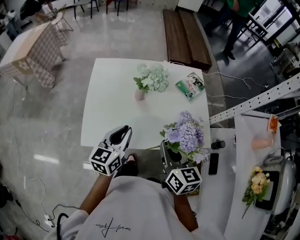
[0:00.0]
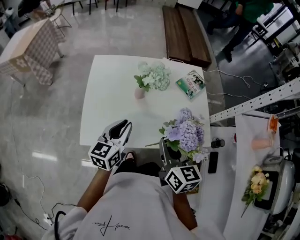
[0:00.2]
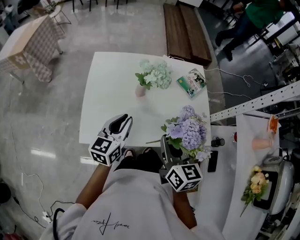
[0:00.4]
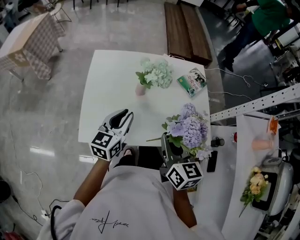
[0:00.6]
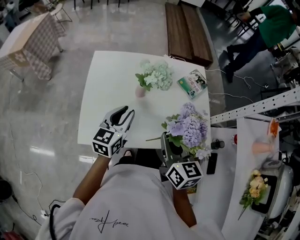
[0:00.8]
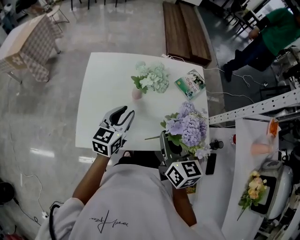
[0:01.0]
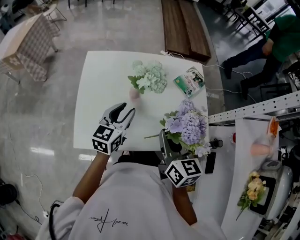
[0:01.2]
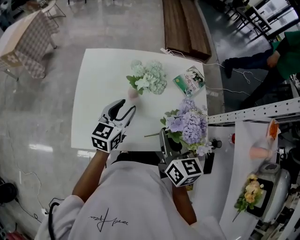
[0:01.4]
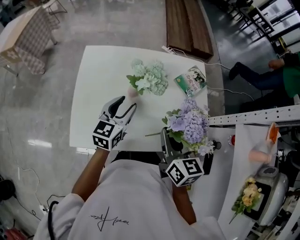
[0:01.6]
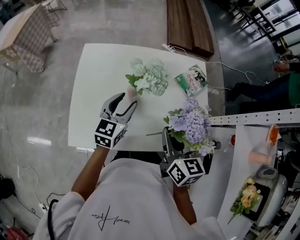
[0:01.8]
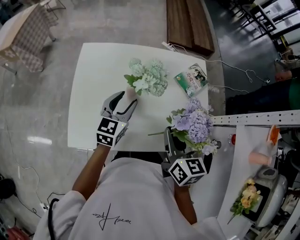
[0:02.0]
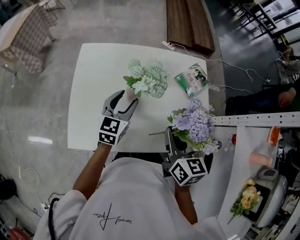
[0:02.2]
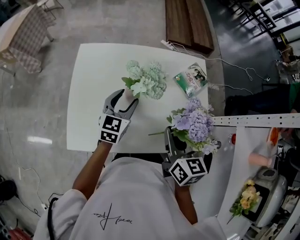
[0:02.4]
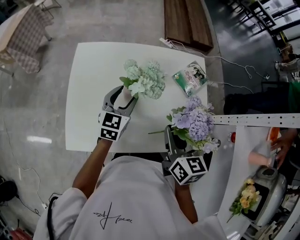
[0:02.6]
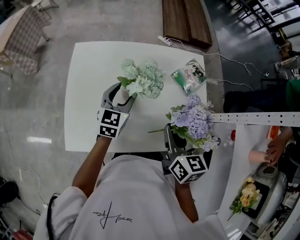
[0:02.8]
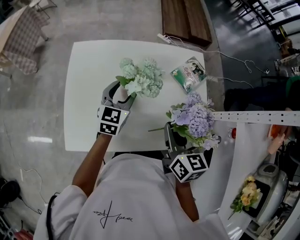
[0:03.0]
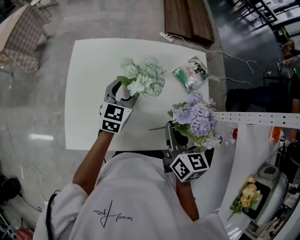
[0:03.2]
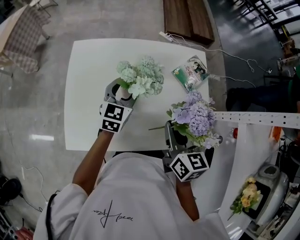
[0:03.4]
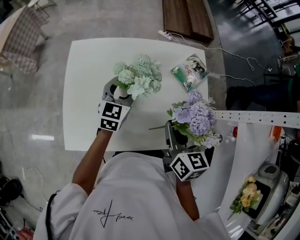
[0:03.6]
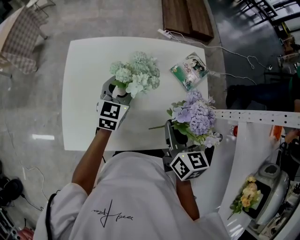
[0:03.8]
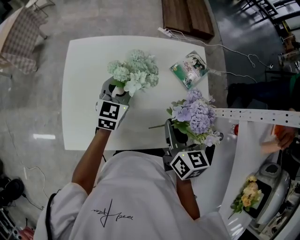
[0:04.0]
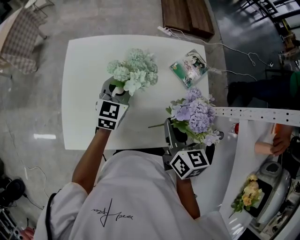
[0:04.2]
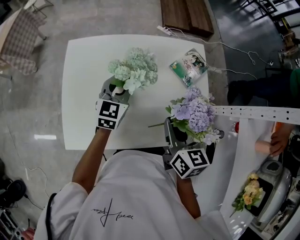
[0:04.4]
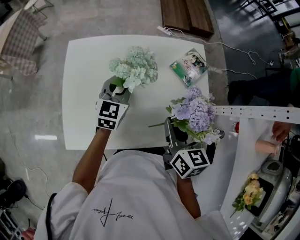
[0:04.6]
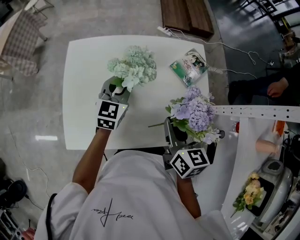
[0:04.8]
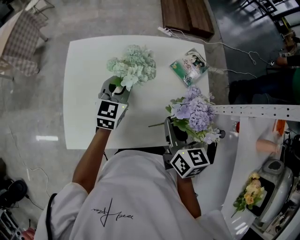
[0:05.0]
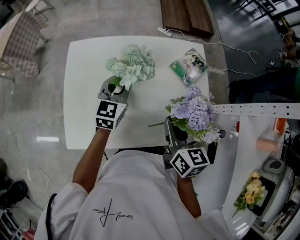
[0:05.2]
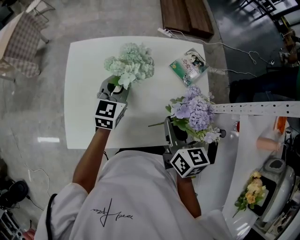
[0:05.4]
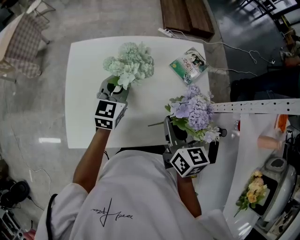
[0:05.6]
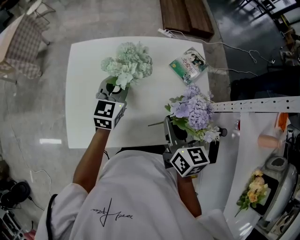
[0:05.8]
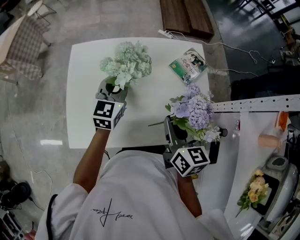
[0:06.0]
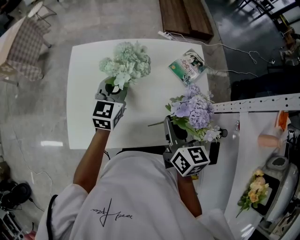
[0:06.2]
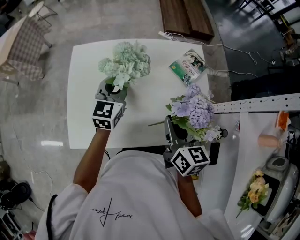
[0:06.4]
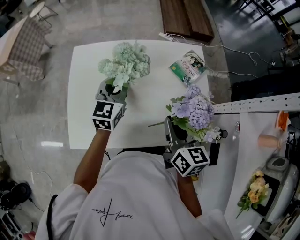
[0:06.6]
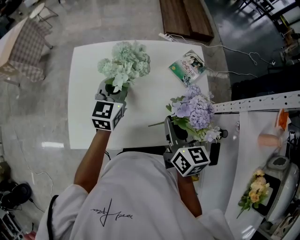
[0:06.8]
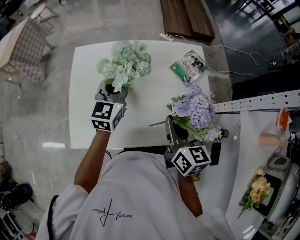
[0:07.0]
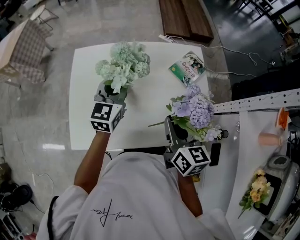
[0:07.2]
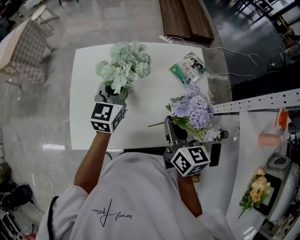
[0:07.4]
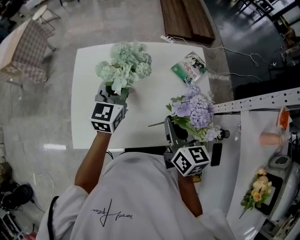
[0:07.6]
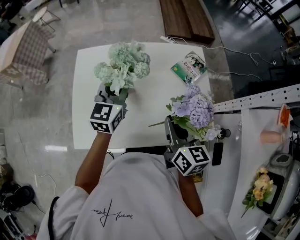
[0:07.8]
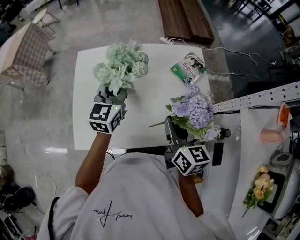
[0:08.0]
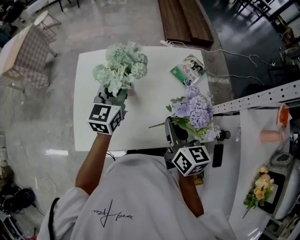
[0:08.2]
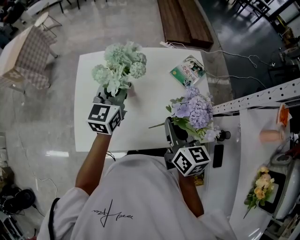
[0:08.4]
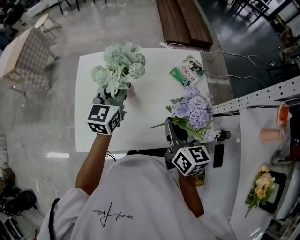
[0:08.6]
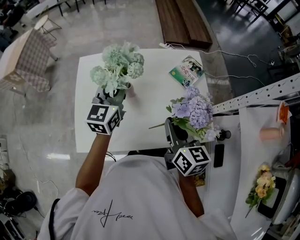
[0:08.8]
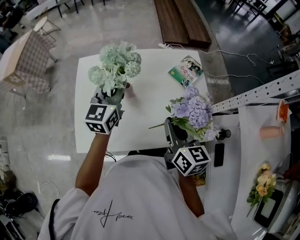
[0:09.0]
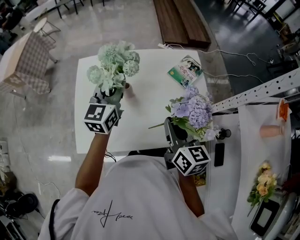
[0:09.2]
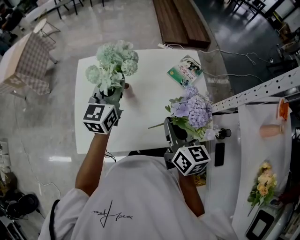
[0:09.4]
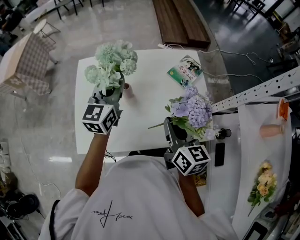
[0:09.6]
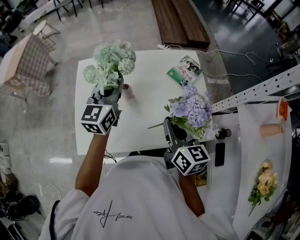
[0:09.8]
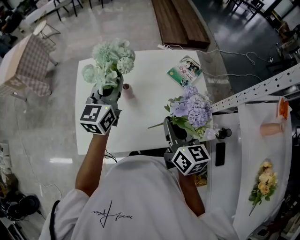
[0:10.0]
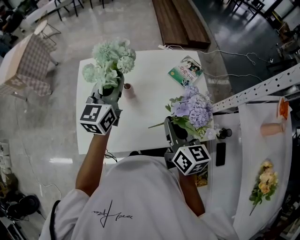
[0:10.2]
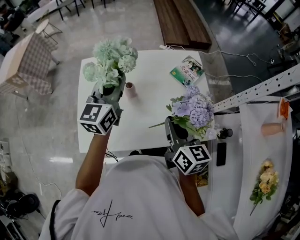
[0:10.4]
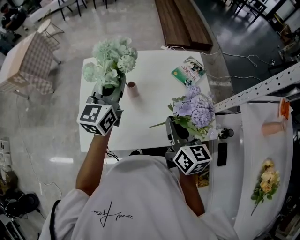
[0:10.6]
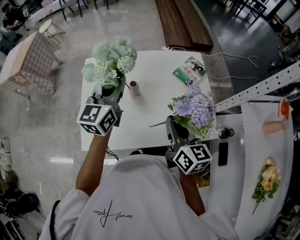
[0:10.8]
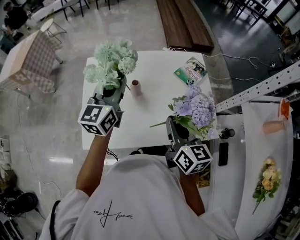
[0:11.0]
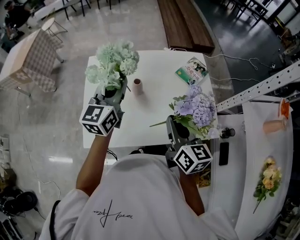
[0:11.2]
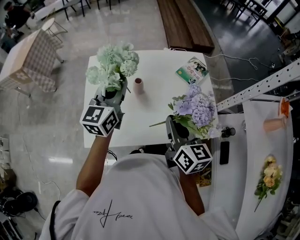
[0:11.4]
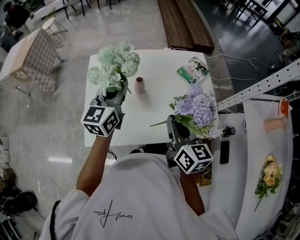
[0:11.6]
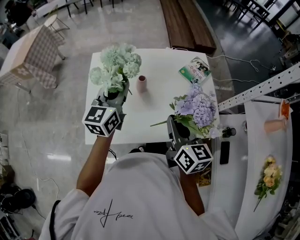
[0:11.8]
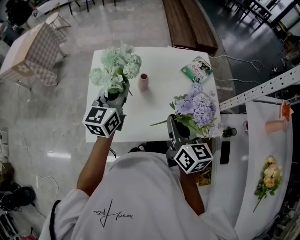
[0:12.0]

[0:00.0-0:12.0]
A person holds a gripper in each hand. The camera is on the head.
0:00.0 to 0:01.6: The grippers both shift forward by about 10 cm. The left gripper opens.
0:01.6 to 0:03.0: The left gripper moves forward, roughly 10 cm.
0:03.0 to 0:04.4: The left gripper closes its fingers.
0:04.4 to 0:06.0: The grippers make only small movements.
0:06.0 to 0:07.6: The grippers move only a little.
0:07.6 to 0:09.0: The grippers stay close to where they were, moving slightly.
0:09.0 to 0:10.4: There are only small adjustments of the grippers.
0:10.4 to 0:12.0: The right gripper heads to the left, covering some 5 cm; the left gripper goes some 10 cm backward and to the left.

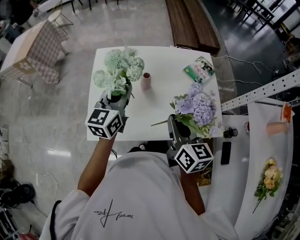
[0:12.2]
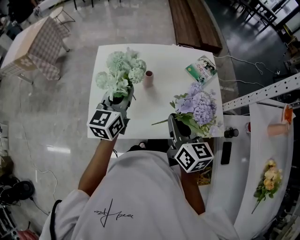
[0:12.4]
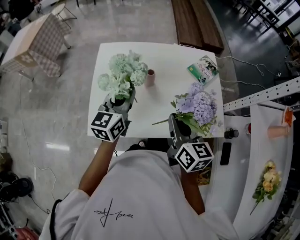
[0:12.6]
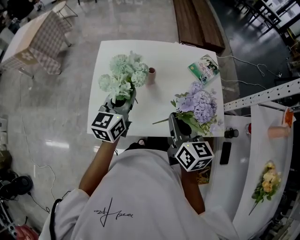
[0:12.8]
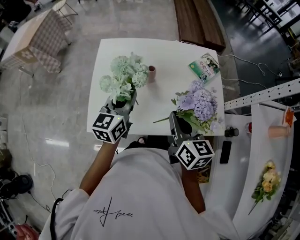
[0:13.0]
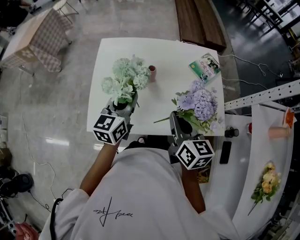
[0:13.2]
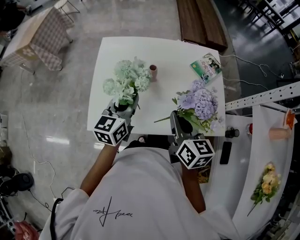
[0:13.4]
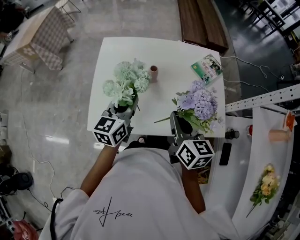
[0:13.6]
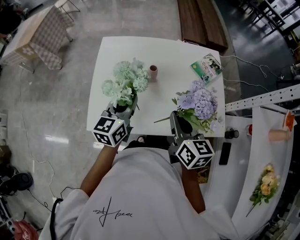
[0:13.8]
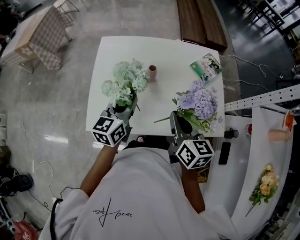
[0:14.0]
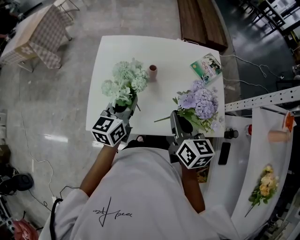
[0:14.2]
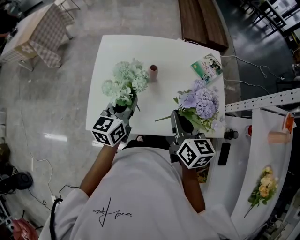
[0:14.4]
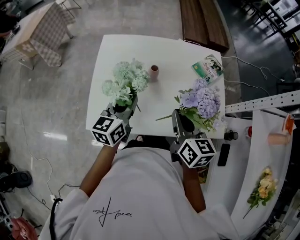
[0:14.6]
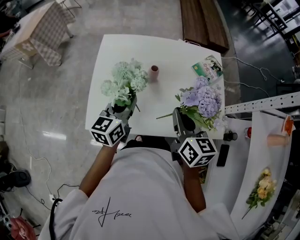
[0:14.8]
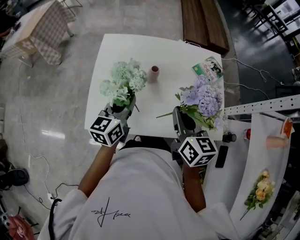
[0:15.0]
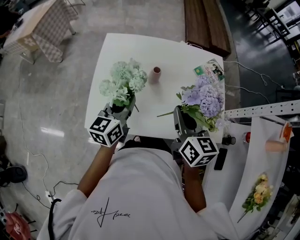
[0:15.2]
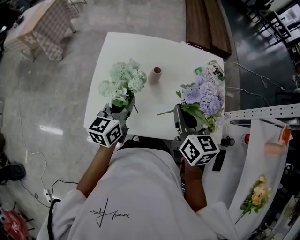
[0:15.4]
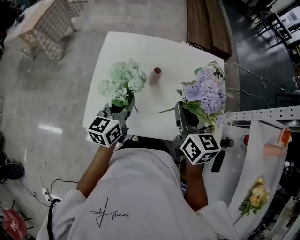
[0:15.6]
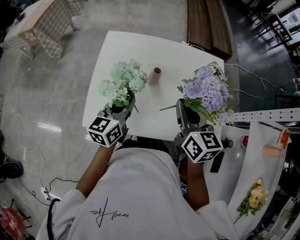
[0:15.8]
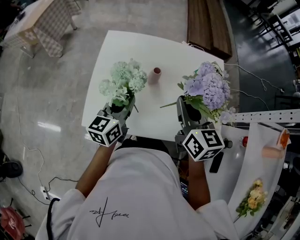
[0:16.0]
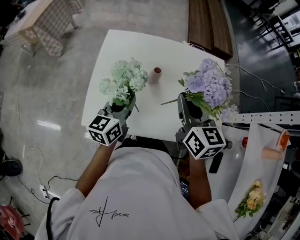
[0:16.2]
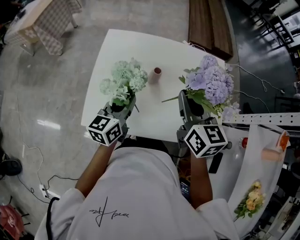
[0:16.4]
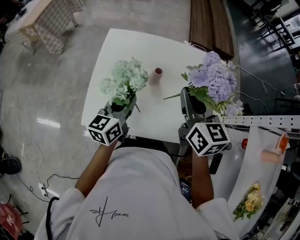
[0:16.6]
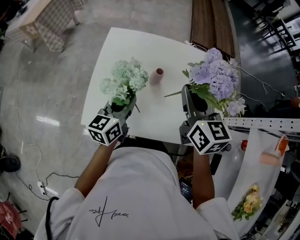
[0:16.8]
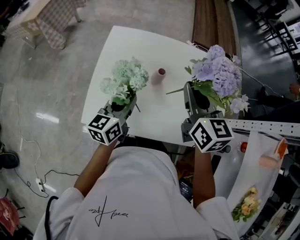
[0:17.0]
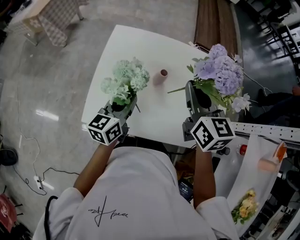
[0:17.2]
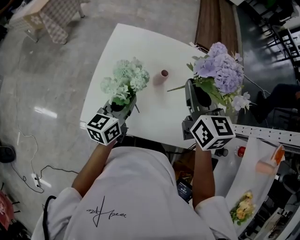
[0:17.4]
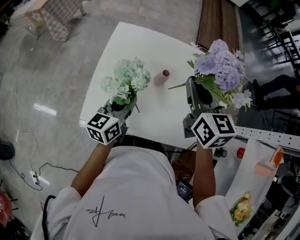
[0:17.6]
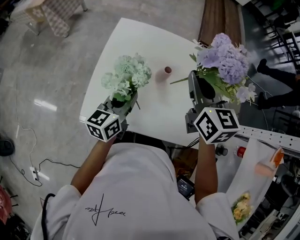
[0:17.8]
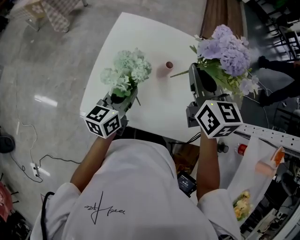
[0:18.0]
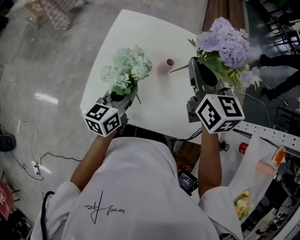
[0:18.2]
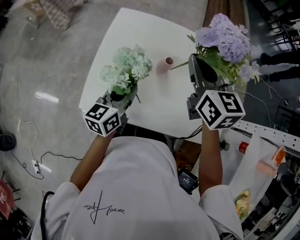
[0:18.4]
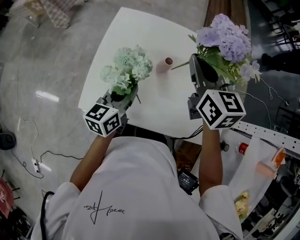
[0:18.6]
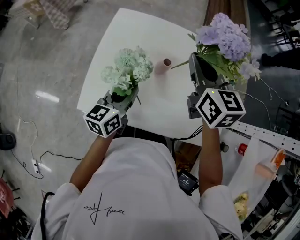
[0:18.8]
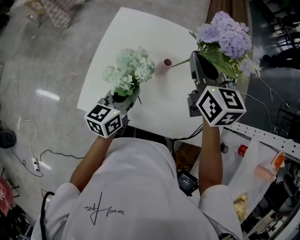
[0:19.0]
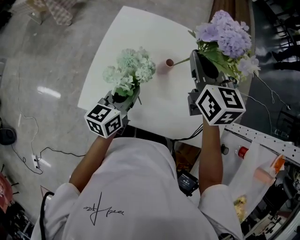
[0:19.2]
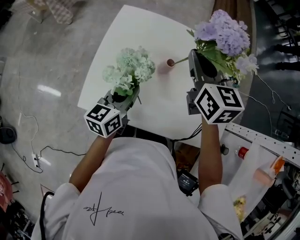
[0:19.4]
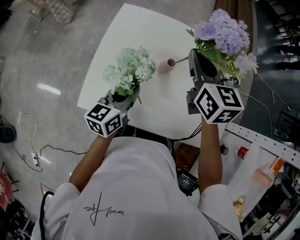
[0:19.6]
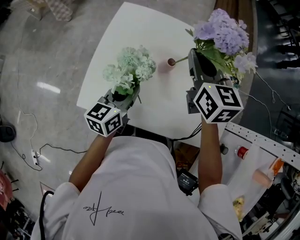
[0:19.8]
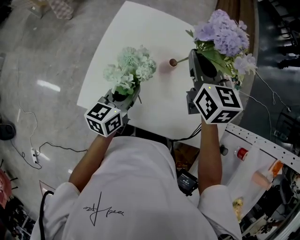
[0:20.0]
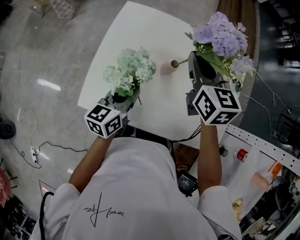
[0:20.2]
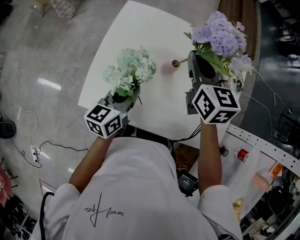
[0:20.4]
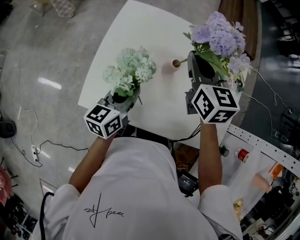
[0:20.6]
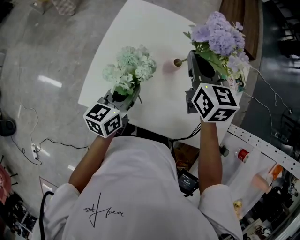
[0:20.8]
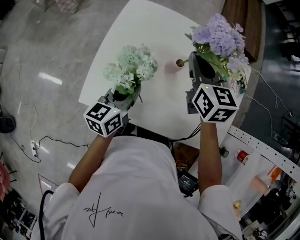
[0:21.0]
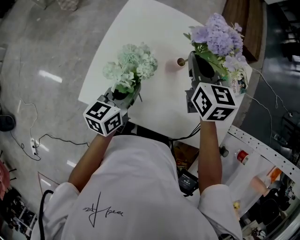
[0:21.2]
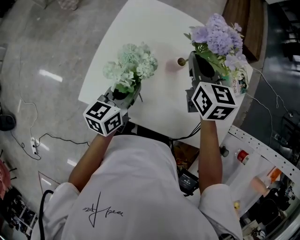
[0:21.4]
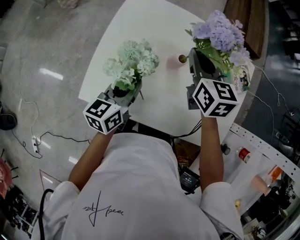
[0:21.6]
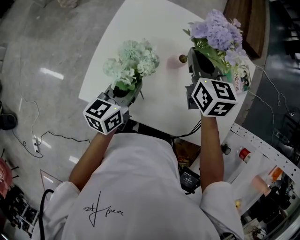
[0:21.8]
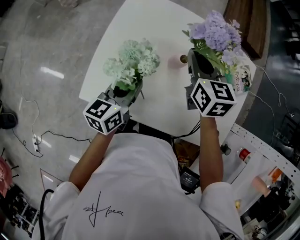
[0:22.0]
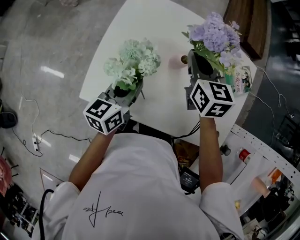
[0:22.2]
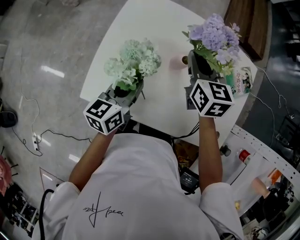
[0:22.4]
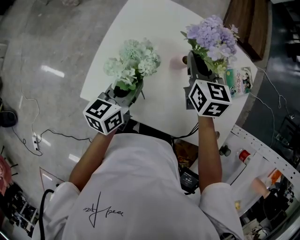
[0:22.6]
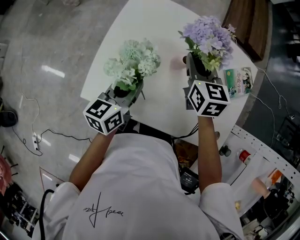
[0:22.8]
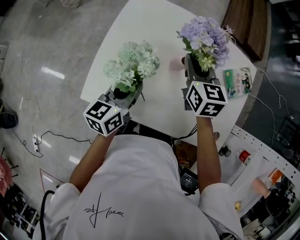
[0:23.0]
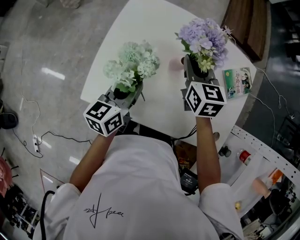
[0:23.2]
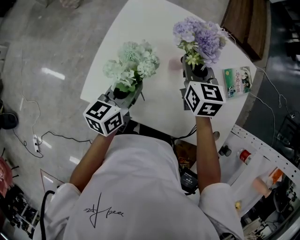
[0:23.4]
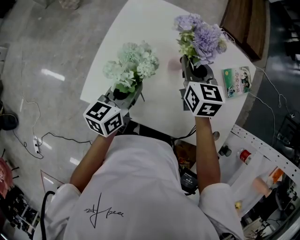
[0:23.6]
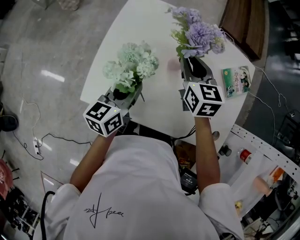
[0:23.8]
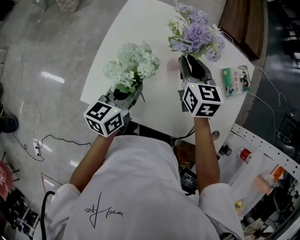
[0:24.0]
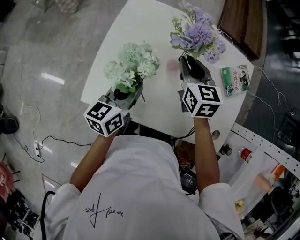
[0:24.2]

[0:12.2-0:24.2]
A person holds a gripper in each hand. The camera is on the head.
0:12.2 to 0:13.8: The left gripper heads downward, covering some 5 cm.
0:13.8 to 0:15.2: The grippers stay close to where they were, moving slightly.
0:15.2 to 0:16.6: The right gripper goes approximately 10 cm forward and upward.
0:16.6 to 0:18.2: The right gripper shifts roughly 10 cm forward.
0:18.2 to 0:19.8: There are only small adjustments of the grippers.
0:19.8 to 0:21.2: The right gripper is displaced downward by approximately 5 cm.
0:21.2 to 0:24.2: There are only small adjustments of the grippers.
